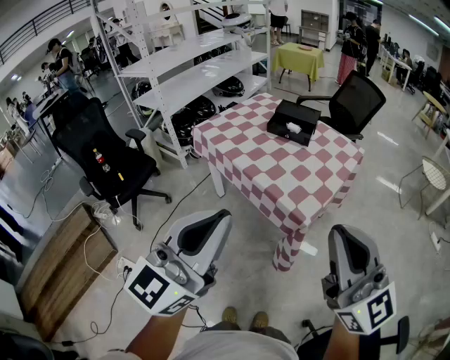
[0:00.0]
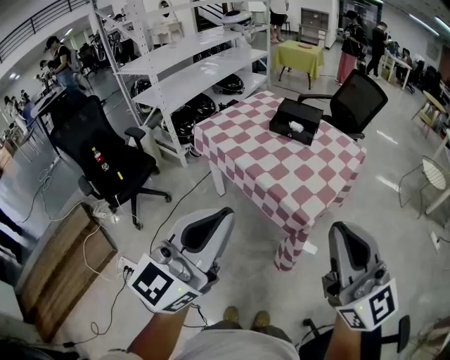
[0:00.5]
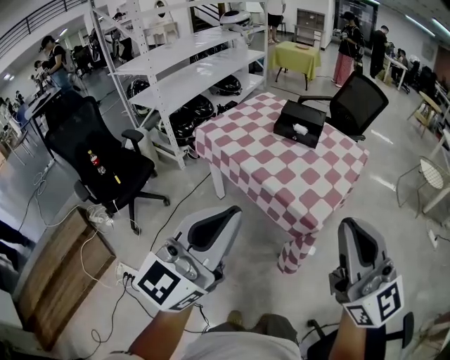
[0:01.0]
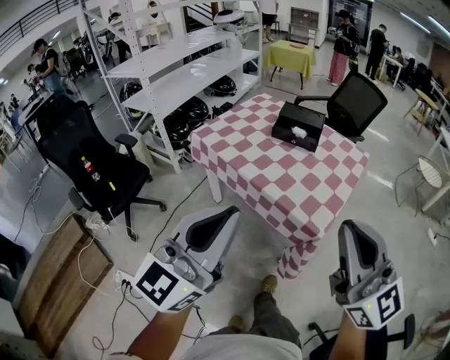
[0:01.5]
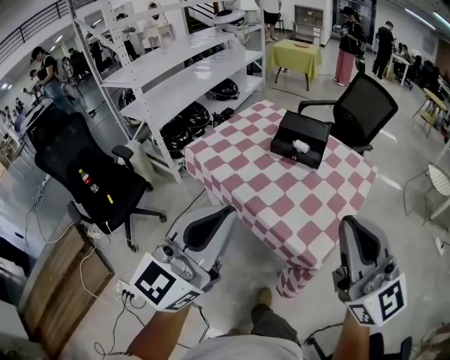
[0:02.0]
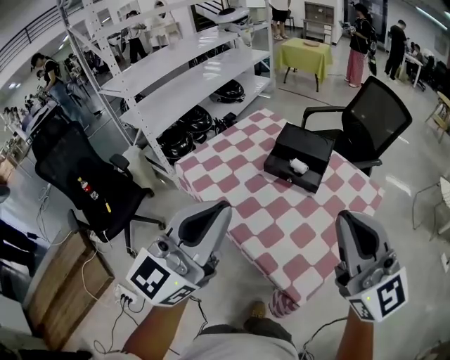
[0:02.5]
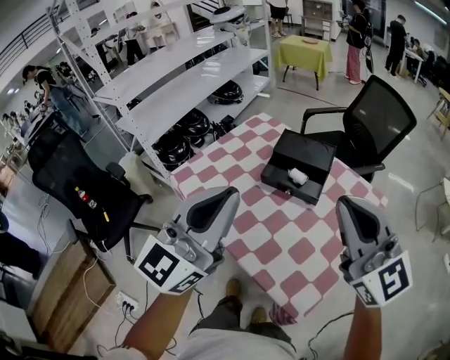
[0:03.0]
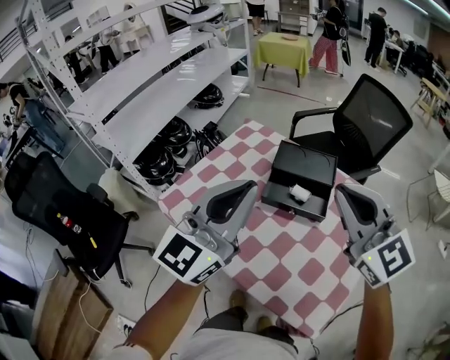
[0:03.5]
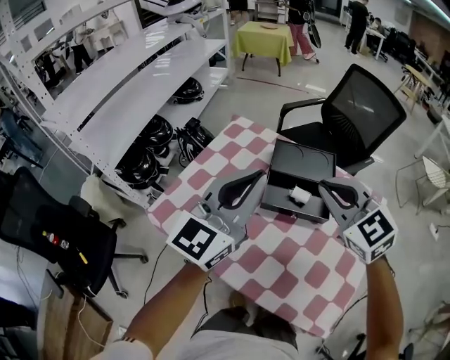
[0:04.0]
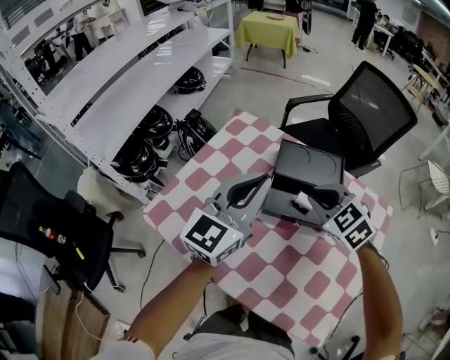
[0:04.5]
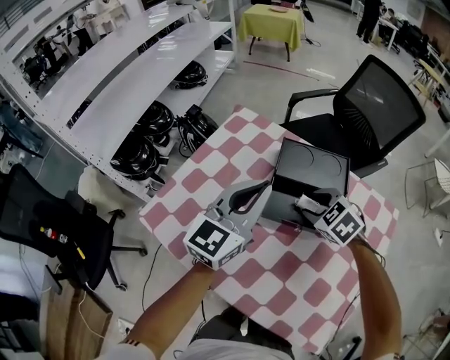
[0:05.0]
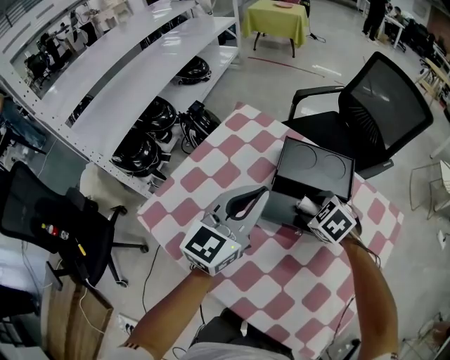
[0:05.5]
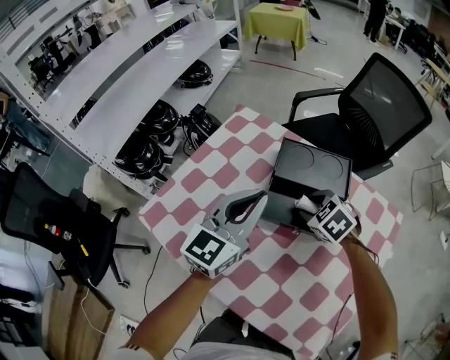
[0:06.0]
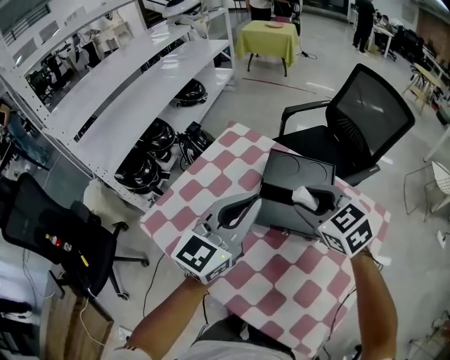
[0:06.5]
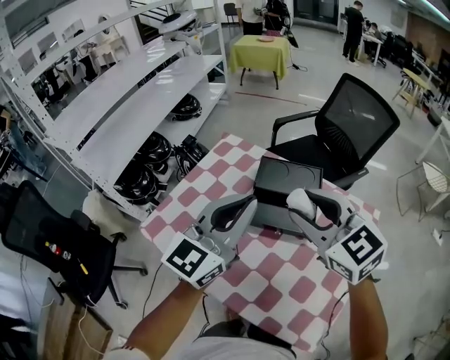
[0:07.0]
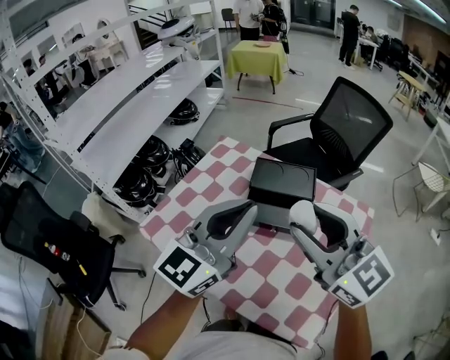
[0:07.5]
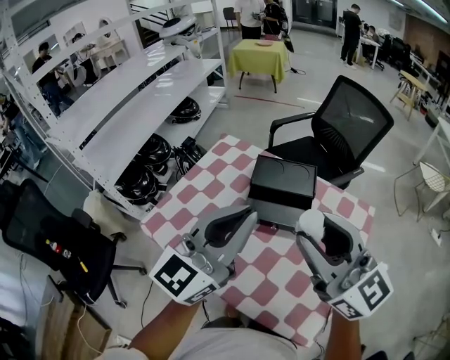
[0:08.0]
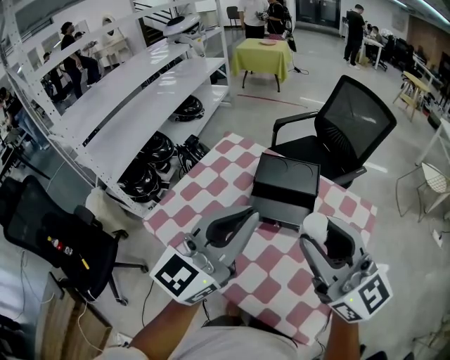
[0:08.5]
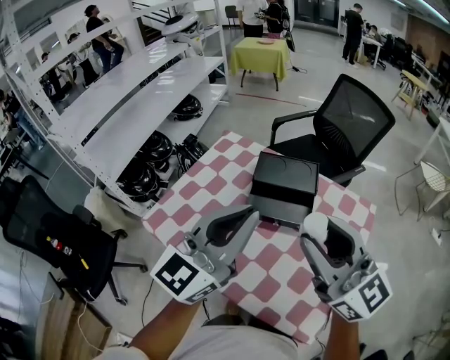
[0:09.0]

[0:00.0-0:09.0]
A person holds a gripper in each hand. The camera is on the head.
0:00.0 to 0:02.0: The two grippers go about 20 cm forward.
0:02.0 to 0:04.5: The pair of grippers is taken forward, roughly 50 cm. The right gripper travels downward by roughly 25 cm, and tips its fingers downward by about 60 degrees.
0:04.5 to 0:07.0: The right gripper moves upward and backward, roughly 15 cm, turns by about 30 degrees, and opens its fingers, while the left gripper is displaced backward and upward by some 10 cm.
0:07.0 to 0:09.0: The right gripper shifts approximately 10 cm backward and upward, and swivels roughly 30 degrees. The left gripper travels backward by some 10 cm.

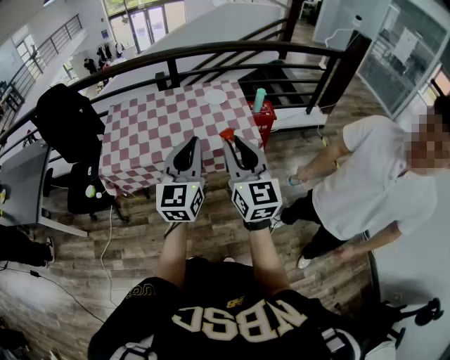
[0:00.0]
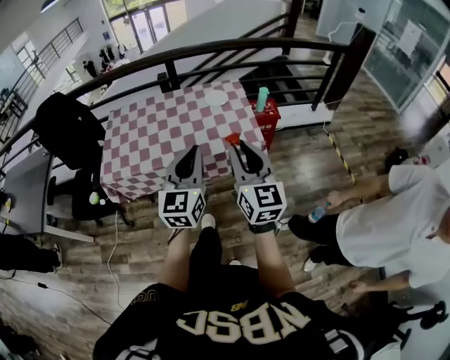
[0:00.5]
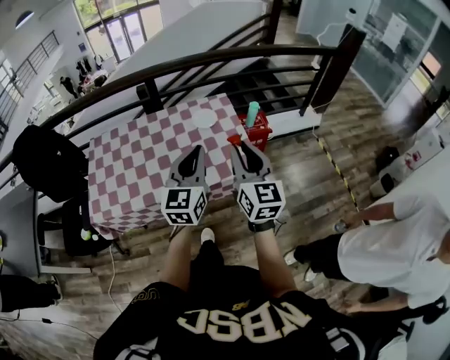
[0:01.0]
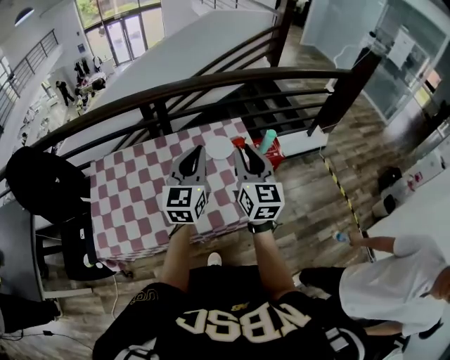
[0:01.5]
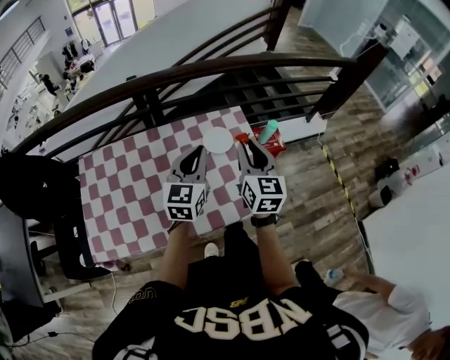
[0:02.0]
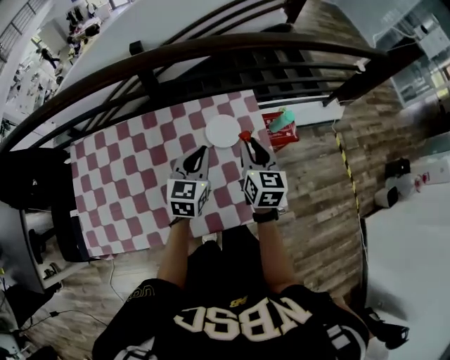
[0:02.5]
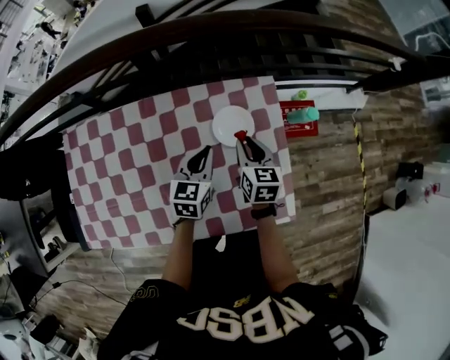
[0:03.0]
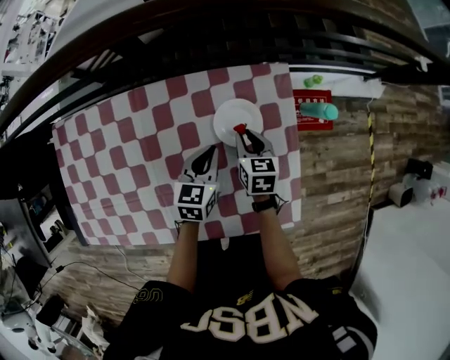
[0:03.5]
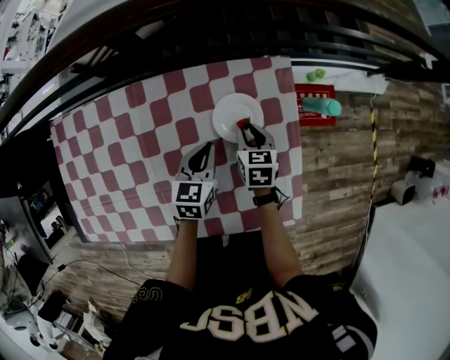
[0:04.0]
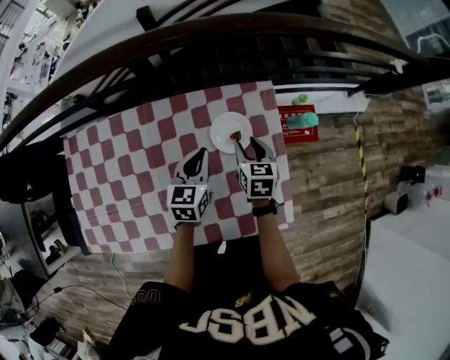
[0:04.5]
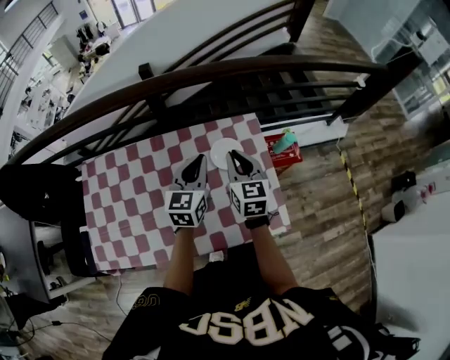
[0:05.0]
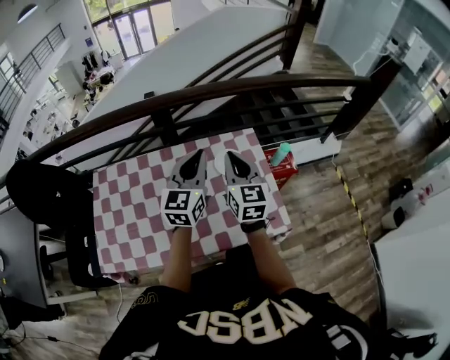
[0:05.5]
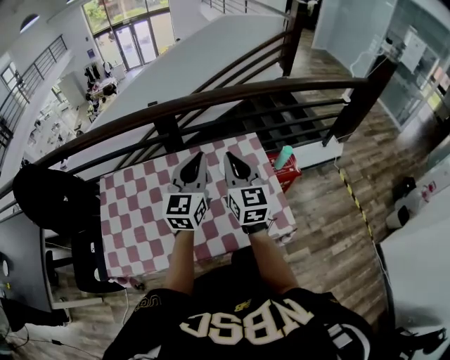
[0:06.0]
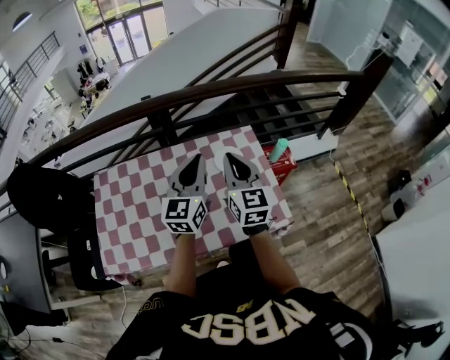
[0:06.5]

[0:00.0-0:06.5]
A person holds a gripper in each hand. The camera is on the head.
0:00.0 to 0:02.0: The two grippers travel together, forward, approximately 50 cm. The right gripper rotates about 20 degrees.
0:02.0 to 0:04.5: Both grippers travel together downward and forward, some 30 cm. The left gripper rotates some 30 degrees. The right gripper points its fingers approximately 30 degrees further downward, and opens its fingers.
0:04.5 to 0:06.5: Both grippers move upward and backward, about 35 cm. The right gripper angles its fingers upward, by roughly 40 degrees, and closes. Meanwhile the left gripper tilts its fingers about 30 degrees upward.

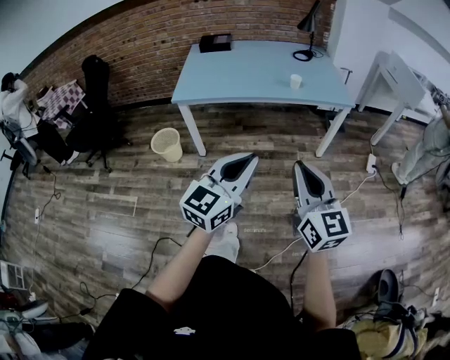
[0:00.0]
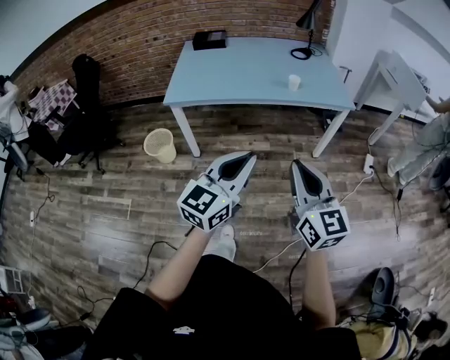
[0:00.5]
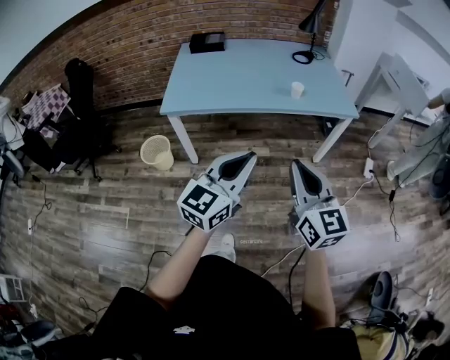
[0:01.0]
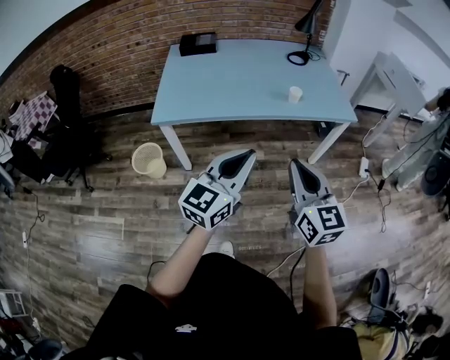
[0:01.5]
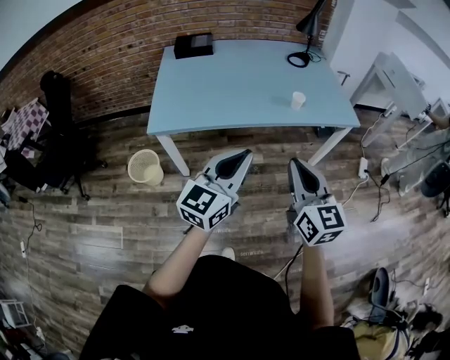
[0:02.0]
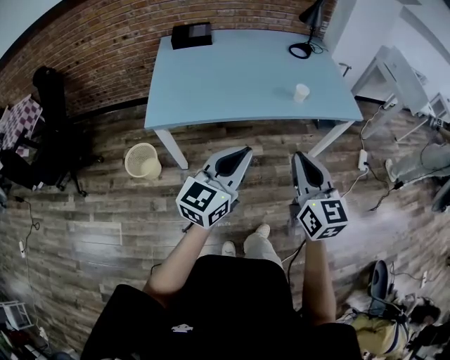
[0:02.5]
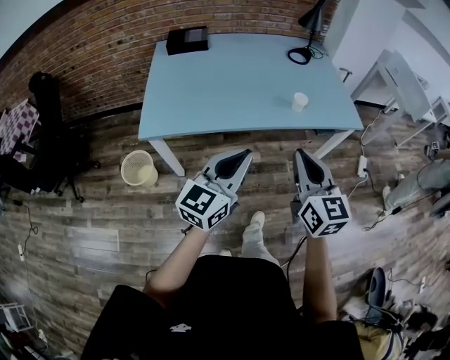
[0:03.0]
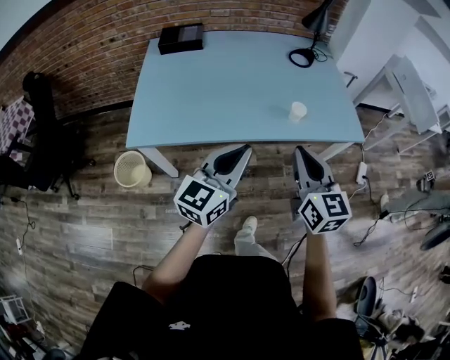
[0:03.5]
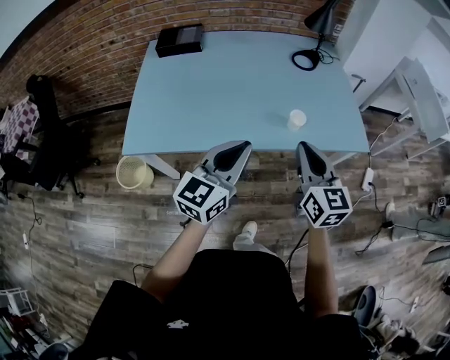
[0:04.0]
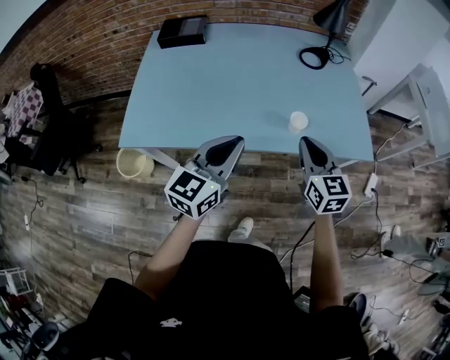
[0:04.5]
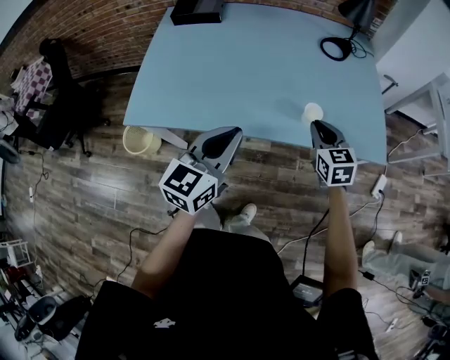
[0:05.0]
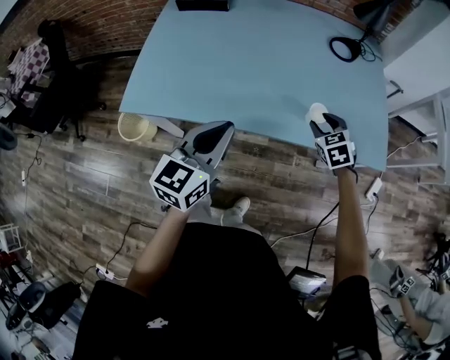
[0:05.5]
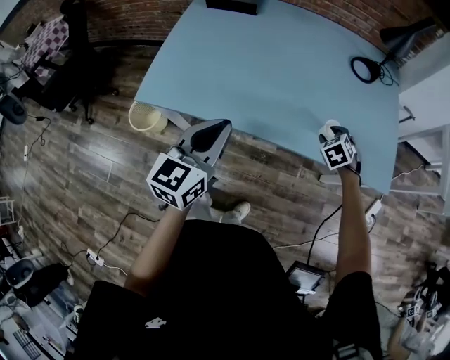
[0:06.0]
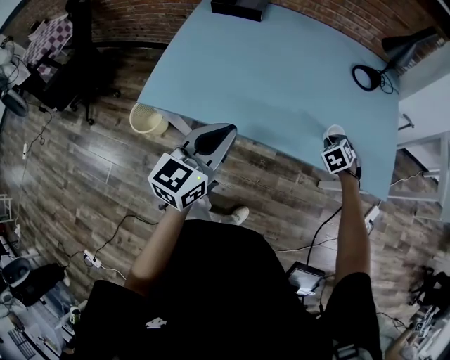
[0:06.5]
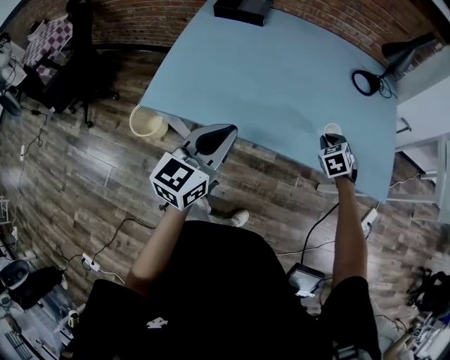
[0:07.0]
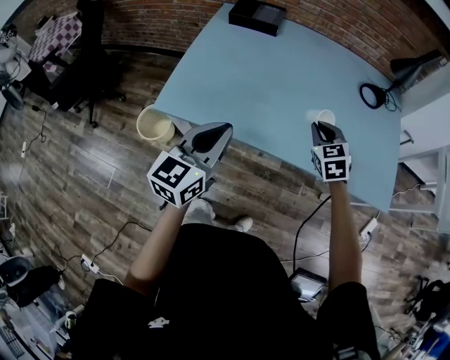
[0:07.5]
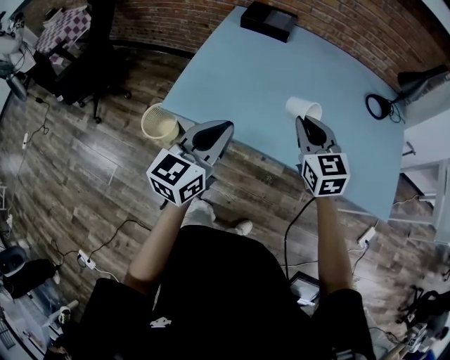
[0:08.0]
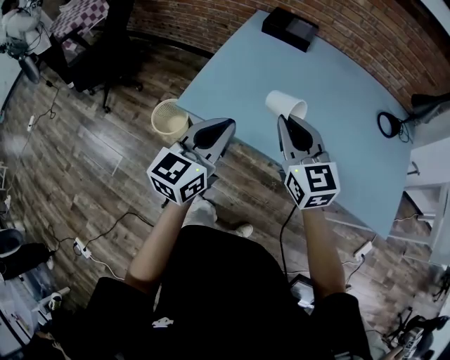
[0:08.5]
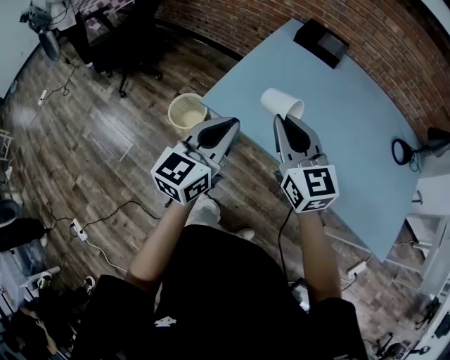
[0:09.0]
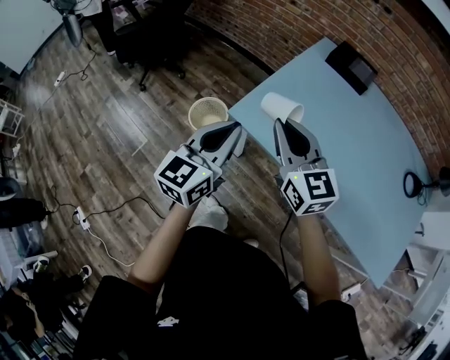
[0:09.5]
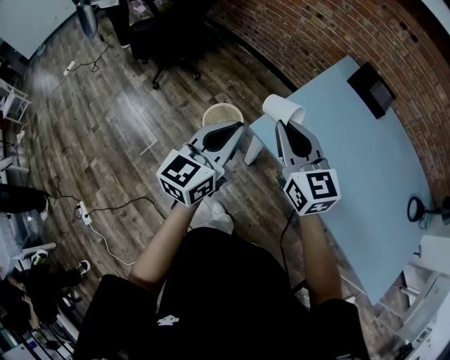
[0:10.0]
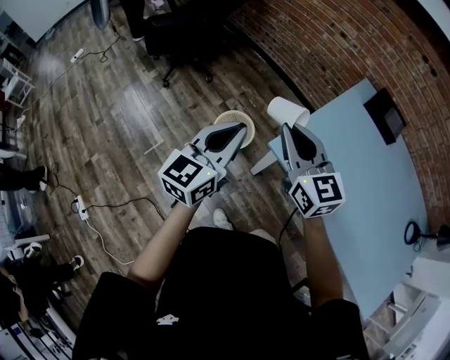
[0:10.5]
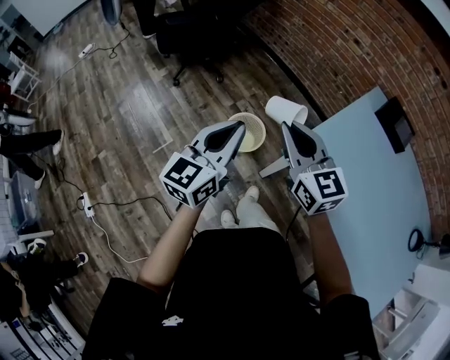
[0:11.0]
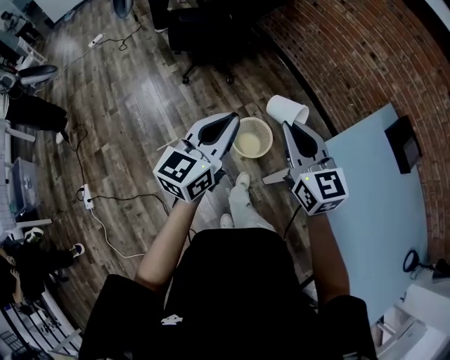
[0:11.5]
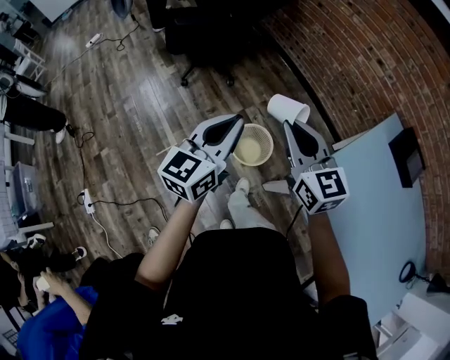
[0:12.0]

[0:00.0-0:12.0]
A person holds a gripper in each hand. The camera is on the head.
0:00.0 to 0:02.0: The two grippers go roughly 30 cm forward and to the left.
0:02.0 to 0:04.0: The two grippers go about 25 cm forward.
0:04.0 to 0:06.0: The left gripper is displaced to the left and downward by roughly 10 cm, and swivels about 20 degrees. The right gripper goes roughly 35 cm downward and forward, angles its fingers downward, by roughly 50 degrees, and opens.
0:06.0 to 0:08.0: The right gripper is displaced to the left and upward by approximately 35 cm, tilts its fingers approximately 40 degrees upward, and closes, while the left gripper goes about 10 cm to the left.
0:08.0 to 0:10.0: The right gripper moves roughly 40 cm, and turns by approximately 30 degrees, while the left gripper changes place by some 30 cm, and turns by roughly 20 degrees.
0:10.0 to 0:12.0: Both grippers move forward and to the left, approximately 25 cm.
